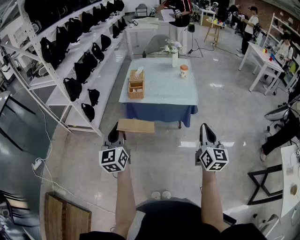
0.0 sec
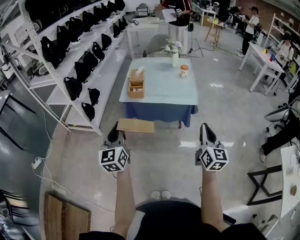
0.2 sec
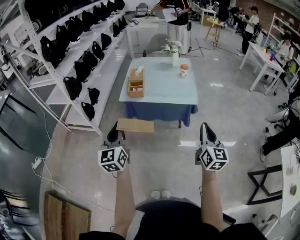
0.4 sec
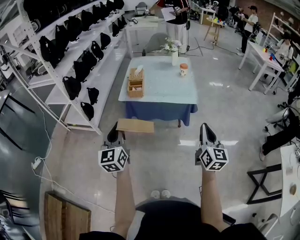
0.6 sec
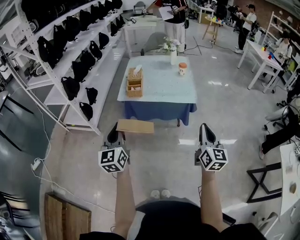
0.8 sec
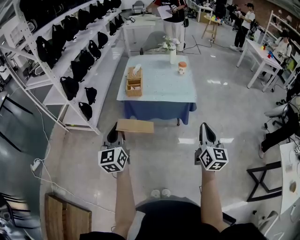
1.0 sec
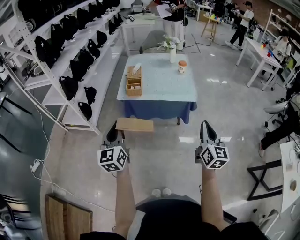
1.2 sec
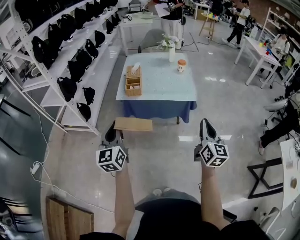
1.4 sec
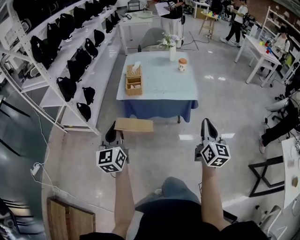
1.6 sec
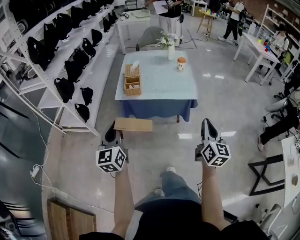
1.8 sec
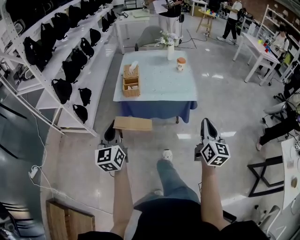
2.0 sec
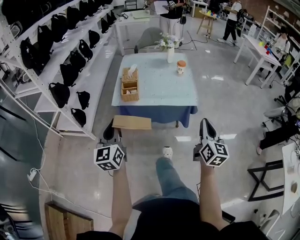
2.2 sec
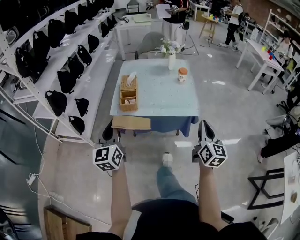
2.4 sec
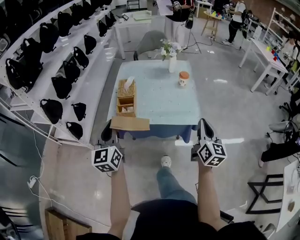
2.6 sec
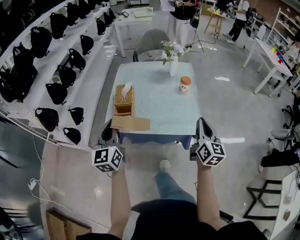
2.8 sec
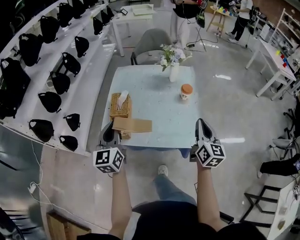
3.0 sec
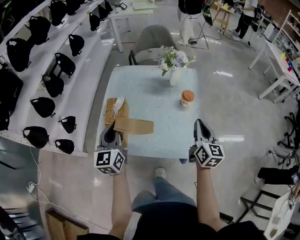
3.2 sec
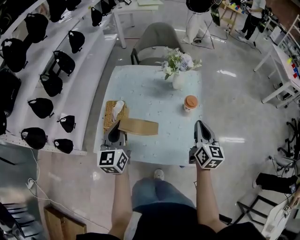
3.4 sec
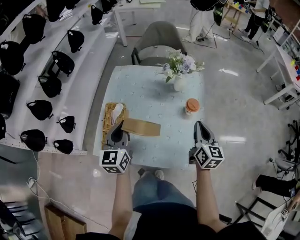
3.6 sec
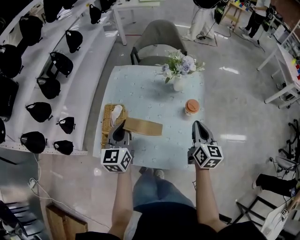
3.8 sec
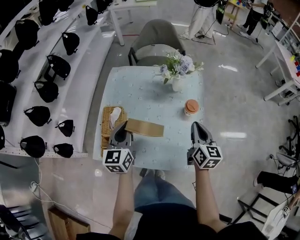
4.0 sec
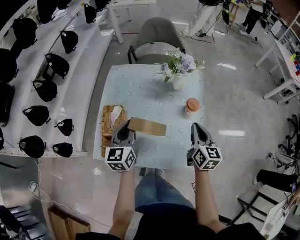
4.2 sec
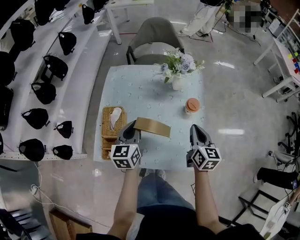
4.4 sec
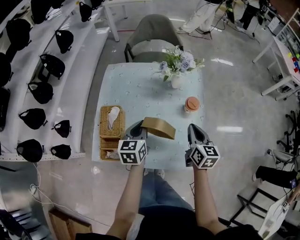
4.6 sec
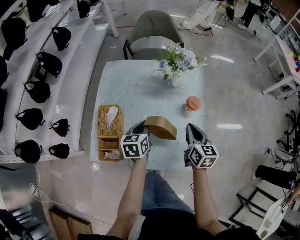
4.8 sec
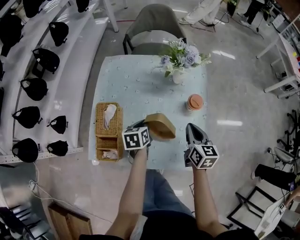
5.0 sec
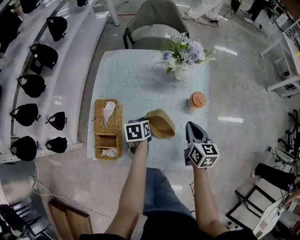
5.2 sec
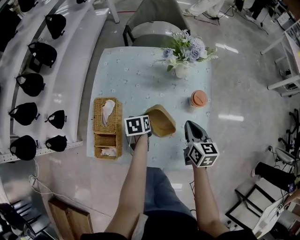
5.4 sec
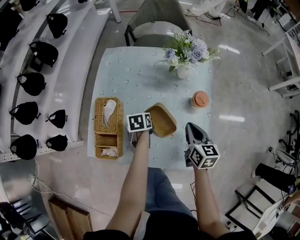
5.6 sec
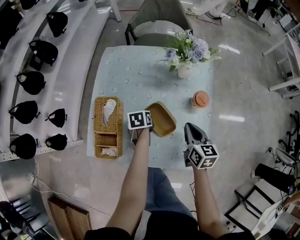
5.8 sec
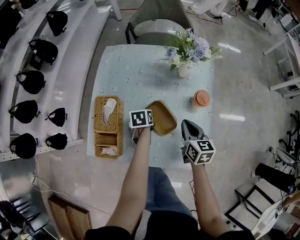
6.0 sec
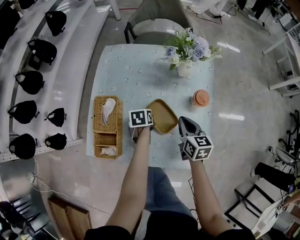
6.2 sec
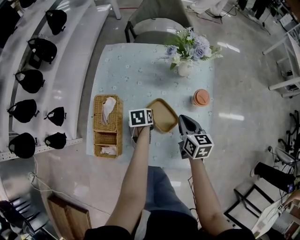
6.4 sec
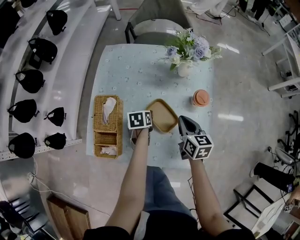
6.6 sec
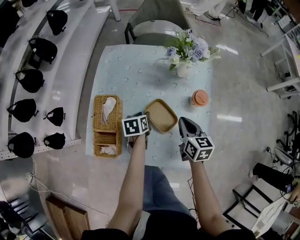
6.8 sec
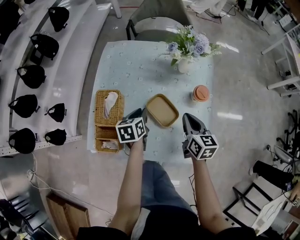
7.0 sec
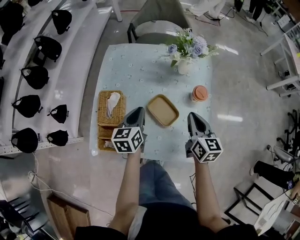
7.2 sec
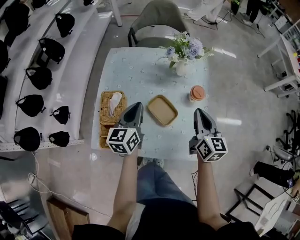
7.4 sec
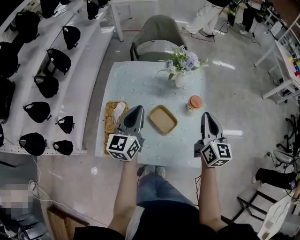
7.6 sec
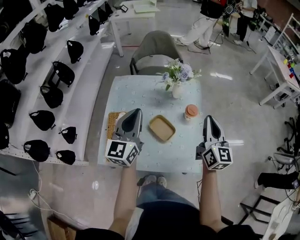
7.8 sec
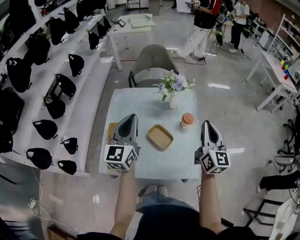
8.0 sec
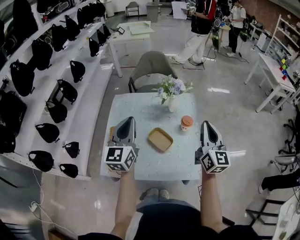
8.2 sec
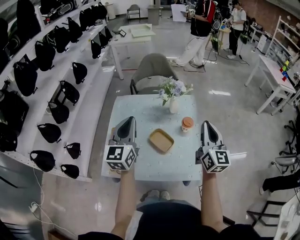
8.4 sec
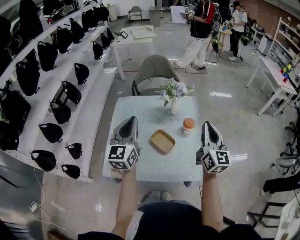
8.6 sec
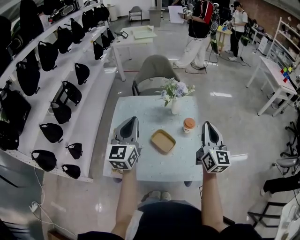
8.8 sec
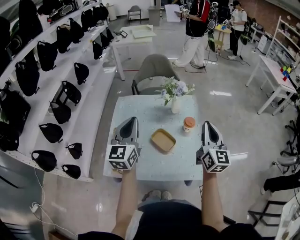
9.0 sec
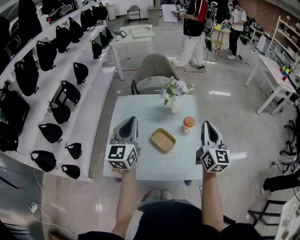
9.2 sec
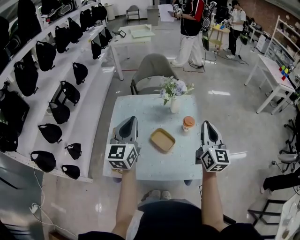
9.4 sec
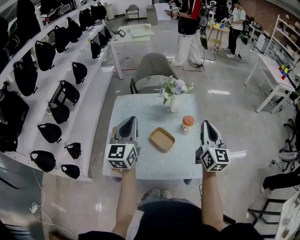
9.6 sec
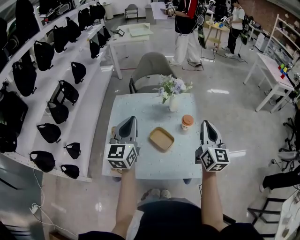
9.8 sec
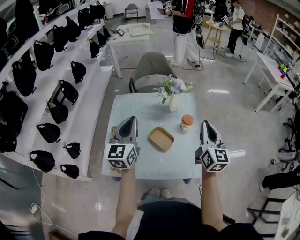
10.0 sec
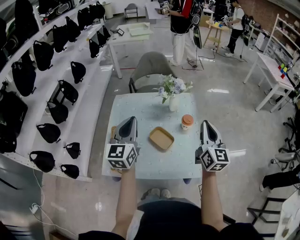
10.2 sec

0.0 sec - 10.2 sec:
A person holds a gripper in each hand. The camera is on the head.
0.0 sec - 1.4 sec: There are only small adjustments of the grippers.
1.4 sec - 3.0 sec: Both grippers are carried forward, some 40 cm.
3.0 sec - 4.4 sec: The left gripper goes roughly 25 cm forward, downward and to the right; the right gripper goes some 20 cm forward and downward.
4.4 sec - 5.8 sec: The right gripper goes about 10 cm downward. The left gripper shifts some 25 cm downward, and tilts its fingers about 40 degrees downward.
5.8 sec - 7.2 sec: The left gripper shifts roughly 15 cm upward, points its fingers roughly 30 degrees further upward, and opens, then closes once more; the right gripper is displaced upward by roughly 5 cm.
7.2 sec - 8.8 sec: The two grippers go roughly 25 cm upward. The right gripper rotates some 30 degrees. Meanwhile the left gripper rotates about 40 degrees.
8.8 sec - 10.2 sec: The grippers move only a little.

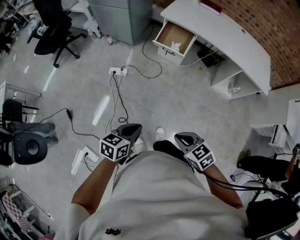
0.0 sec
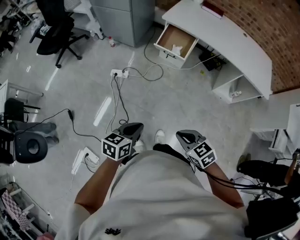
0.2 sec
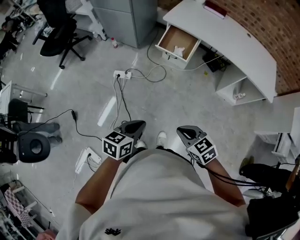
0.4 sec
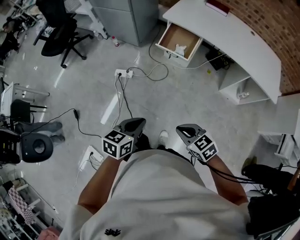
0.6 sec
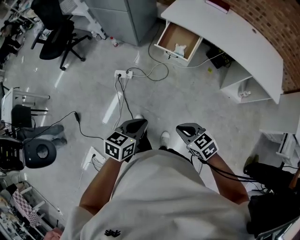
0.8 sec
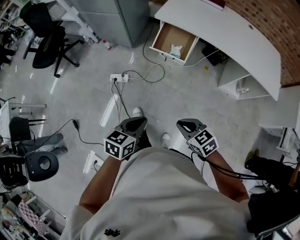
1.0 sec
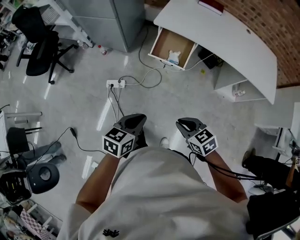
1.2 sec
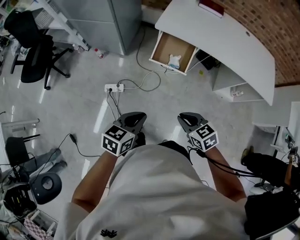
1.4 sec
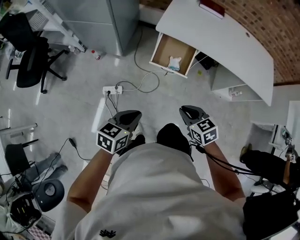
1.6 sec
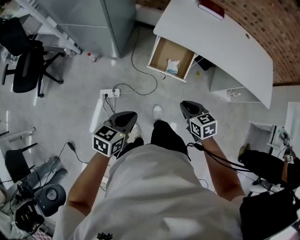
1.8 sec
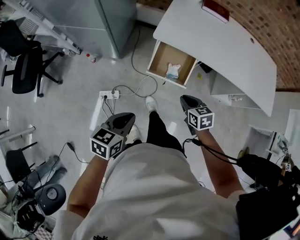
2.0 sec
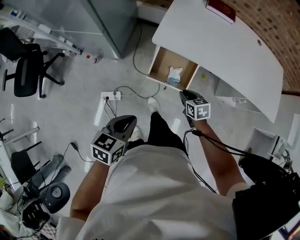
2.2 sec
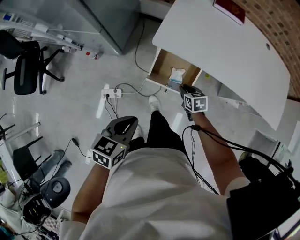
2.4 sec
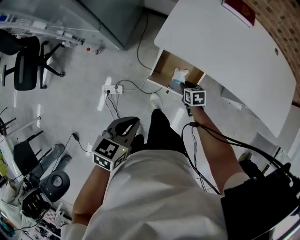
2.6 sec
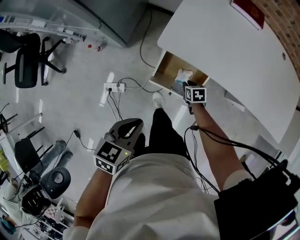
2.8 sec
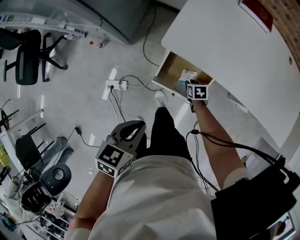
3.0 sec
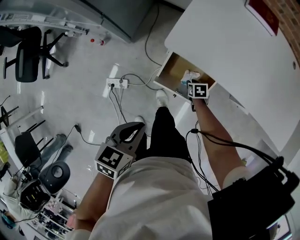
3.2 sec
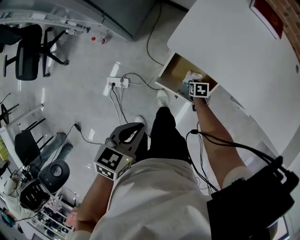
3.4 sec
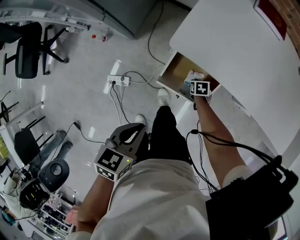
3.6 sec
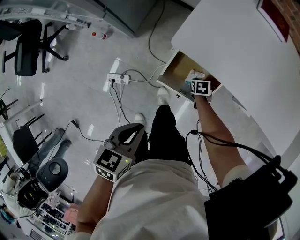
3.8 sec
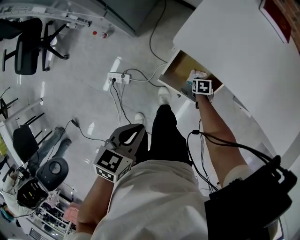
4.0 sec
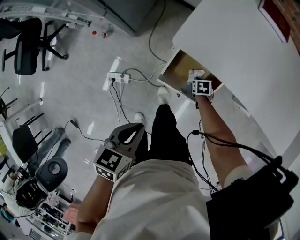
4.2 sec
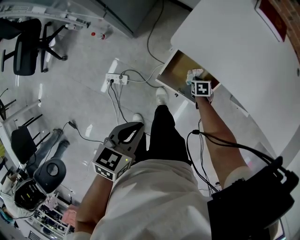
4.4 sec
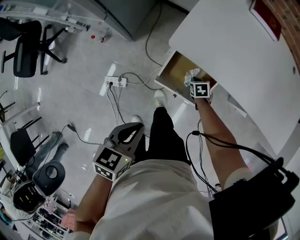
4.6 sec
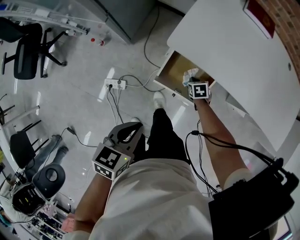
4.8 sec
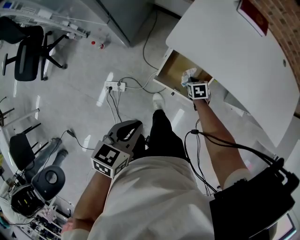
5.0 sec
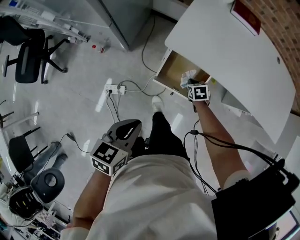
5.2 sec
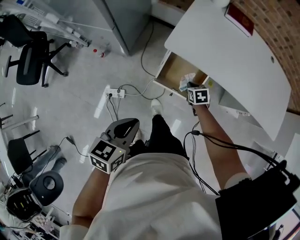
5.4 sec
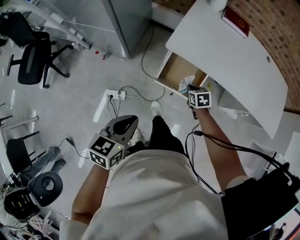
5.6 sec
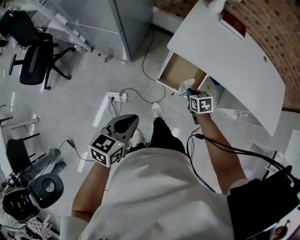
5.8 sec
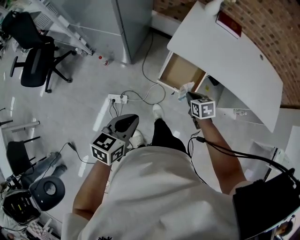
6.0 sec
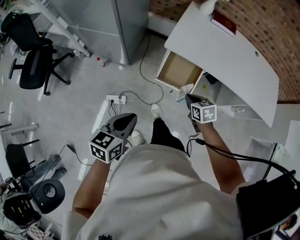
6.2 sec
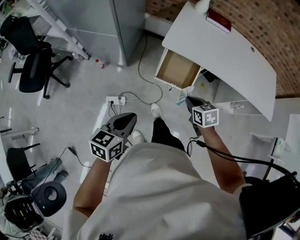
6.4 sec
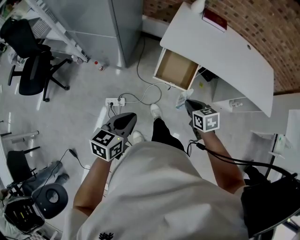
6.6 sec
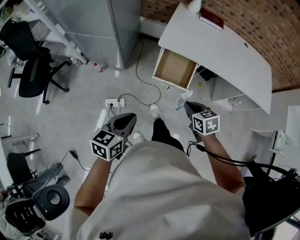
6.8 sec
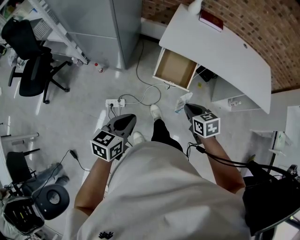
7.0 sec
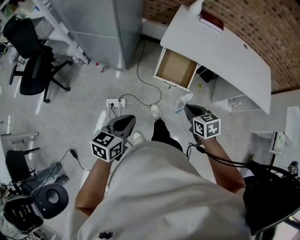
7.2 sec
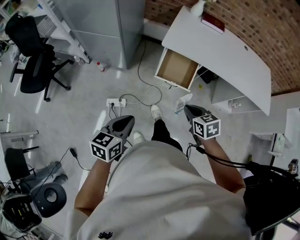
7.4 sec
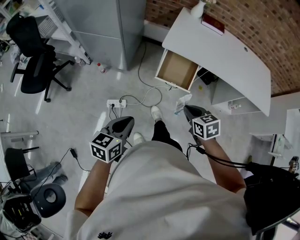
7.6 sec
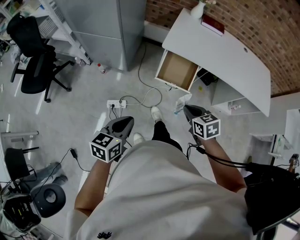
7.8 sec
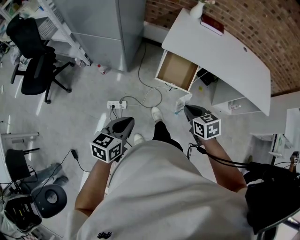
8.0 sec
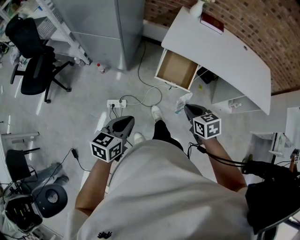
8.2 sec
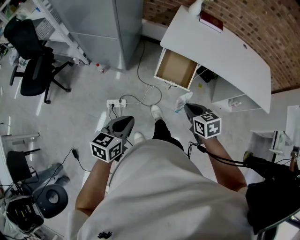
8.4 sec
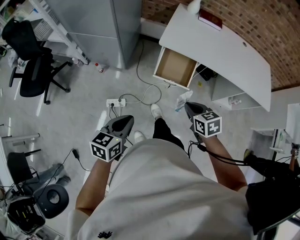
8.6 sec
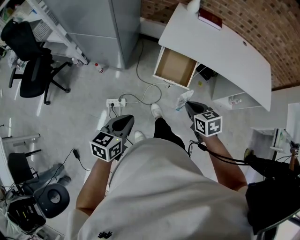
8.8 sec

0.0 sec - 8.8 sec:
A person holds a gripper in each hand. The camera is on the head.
0.0 sec - 1.4 sec: The two grippers go roughly 40 cm forward.
1.4 sec - 3.0 sec: The left gripper moves forward, approximately 40 cm, while the right gripper travels forward and downward by about 70 cm, and swivels approximately 30 degrees.
3.0 sec - 4.4 sec: The two grippers go roughly 5 cm downward.
4.4 sec - 5.8 sec: The left gripper ends up about 25 cm from where it was. The right gripper shifts some 30 cm upward.
5.8 sec - 7.4 sec: The left gripper shifts some 15 cm backward. The right gripper shifts approximately 30 cm backward and upward.
7.4 sec - 8.8 sec: There are only small adjustments of the grippers.

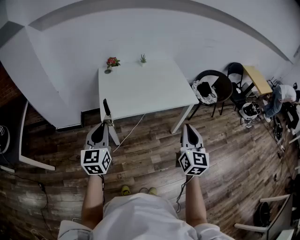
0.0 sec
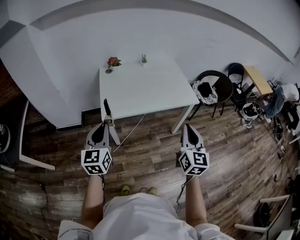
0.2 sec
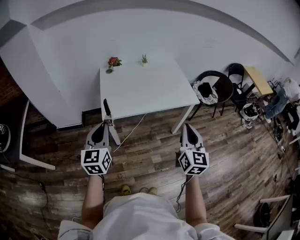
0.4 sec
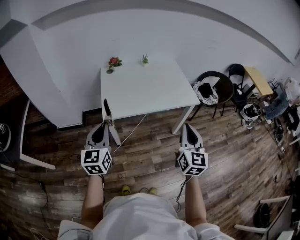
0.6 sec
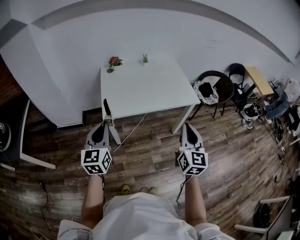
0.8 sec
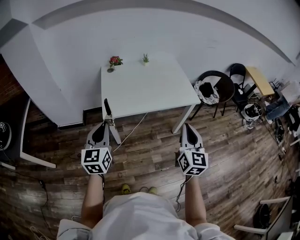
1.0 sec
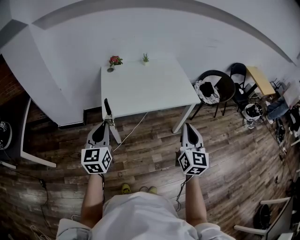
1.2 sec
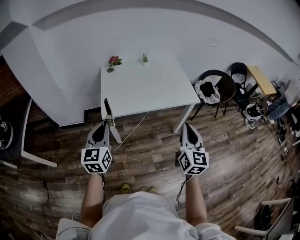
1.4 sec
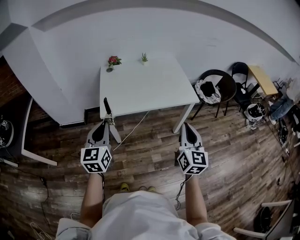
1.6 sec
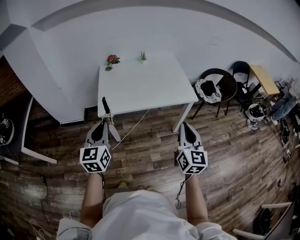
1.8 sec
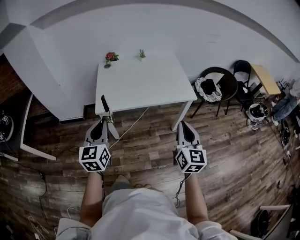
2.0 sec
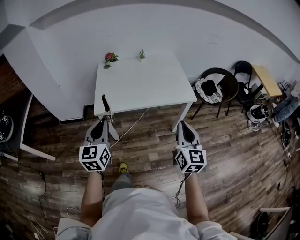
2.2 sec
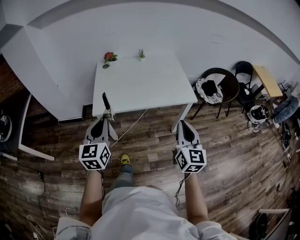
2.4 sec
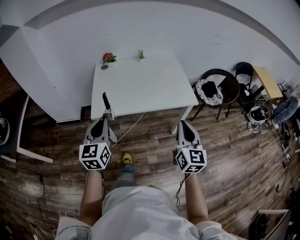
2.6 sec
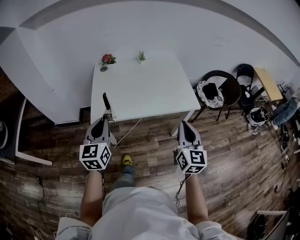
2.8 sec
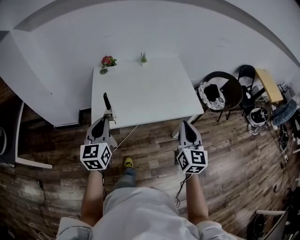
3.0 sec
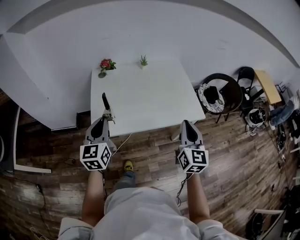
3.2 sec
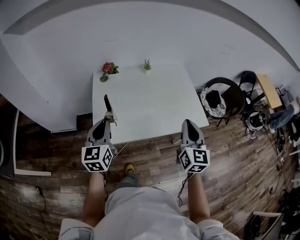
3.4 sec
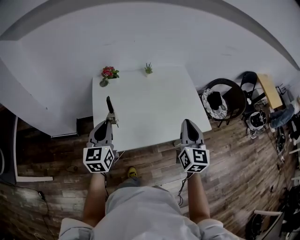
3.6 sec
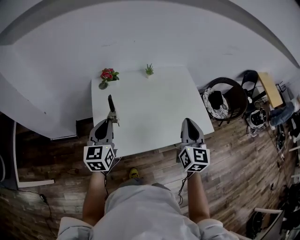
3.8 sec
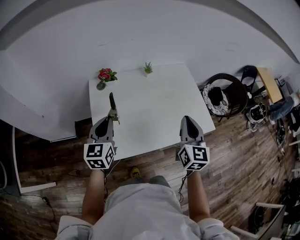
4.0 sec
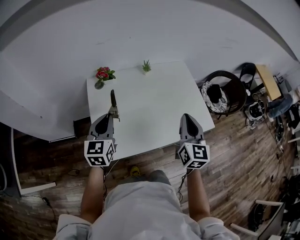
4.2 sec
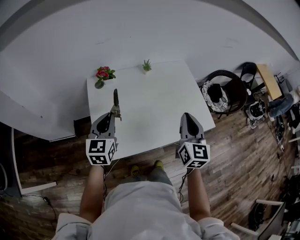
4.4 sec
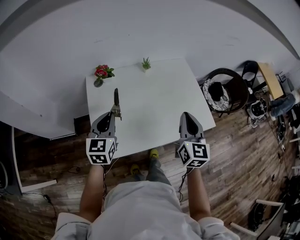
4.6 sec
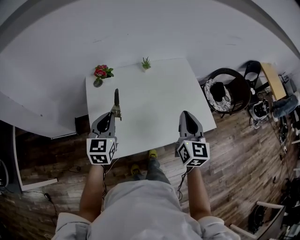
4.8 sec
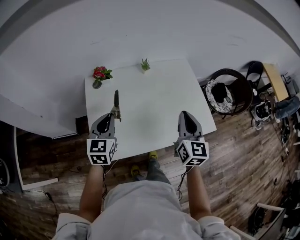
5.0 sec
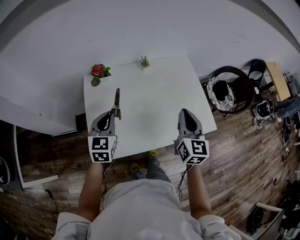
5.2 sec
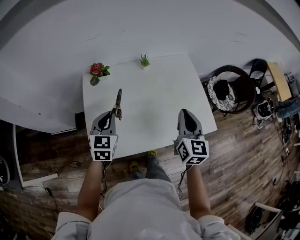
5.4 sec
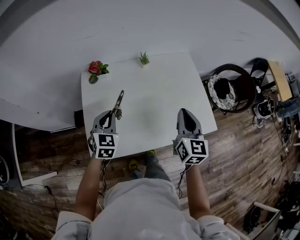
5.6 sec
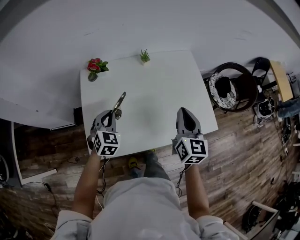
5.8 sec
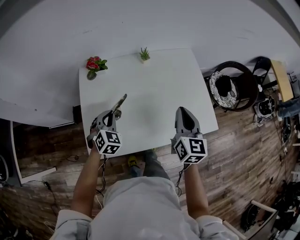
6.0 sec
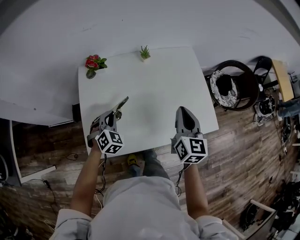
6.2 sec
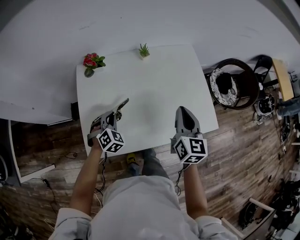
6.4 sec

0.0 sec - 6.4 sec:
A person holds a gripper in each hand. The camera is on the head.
0.0 sec - 1.6 sec: There are only small adjustments of the grippers.
1.6 sec - 3.2 sec: The two grippers go roughly 25 cm forward.
3.2 sec - 4.8 sec: Both grippers travel together forward, about 20 cm.
4.8 sec - 6.4 sec: The right gripper travels forward and downward by about 10 cm. Meanwhile the left gripper moves downward, about 20 cm, and rotates approximately 50 degrees.
